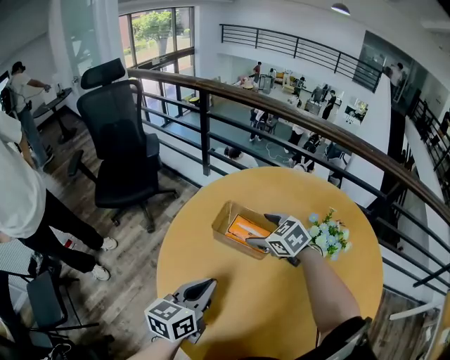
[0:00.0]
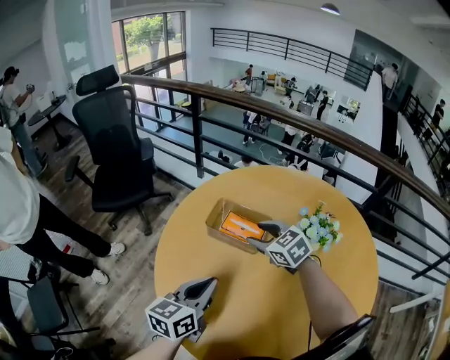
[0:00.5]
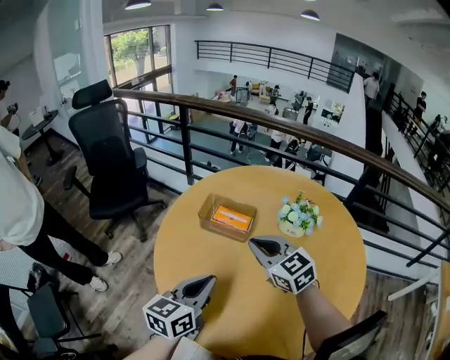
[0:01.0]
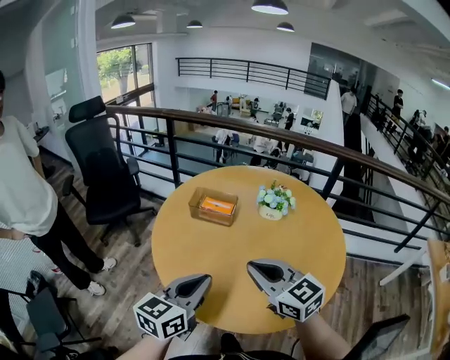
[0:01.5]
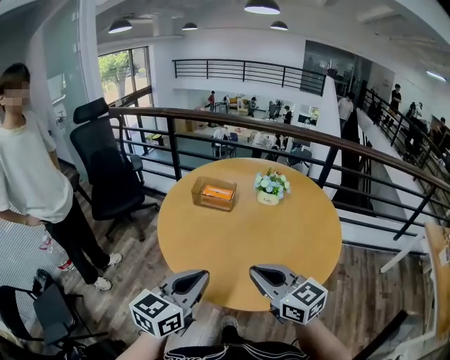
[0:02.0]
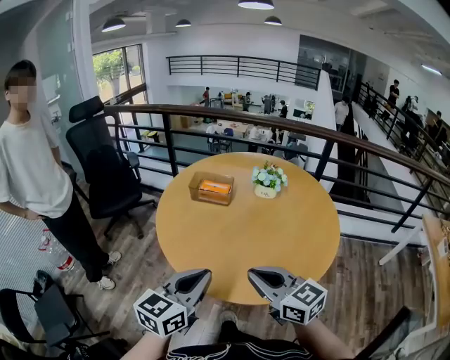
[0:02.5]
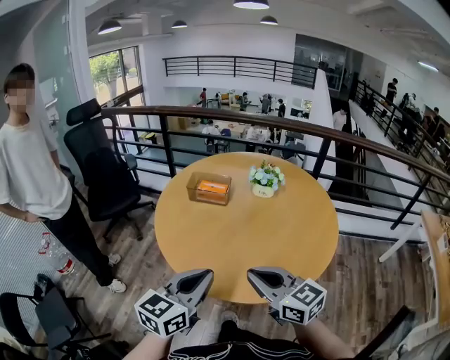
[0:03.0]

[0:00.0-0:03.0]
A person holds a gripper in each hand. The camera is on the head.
0:00.0 to 0:01.5: The right gripper is displaced backward and upward by some 35 cm, tips its fingers upward by about 30 degrees, and closes its fingers; the left gripper is displaced backward and upward by roughly 20 cm.
0:01.5 to 0:03.0: The grippers both shift backward by approximately 10 cm.

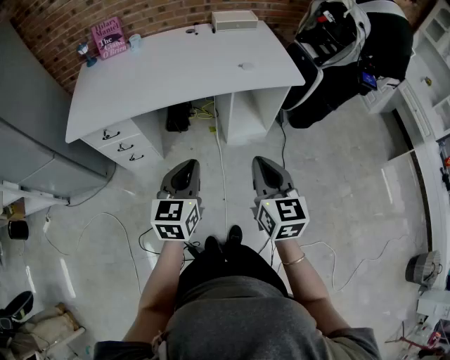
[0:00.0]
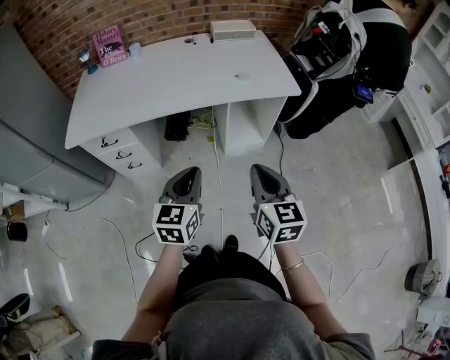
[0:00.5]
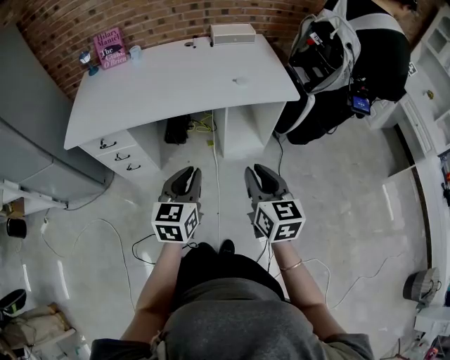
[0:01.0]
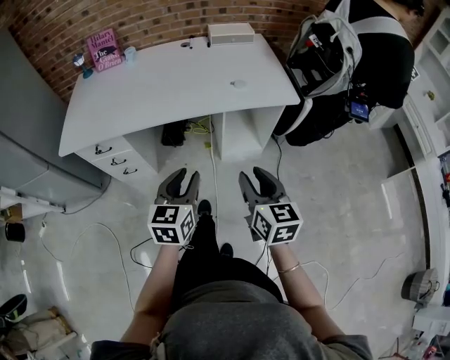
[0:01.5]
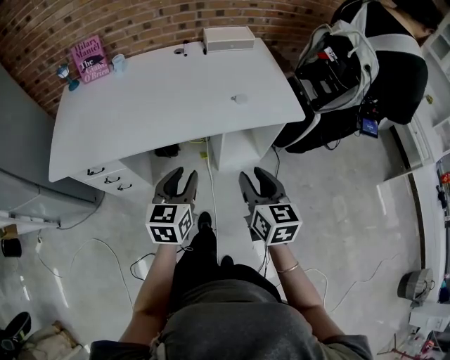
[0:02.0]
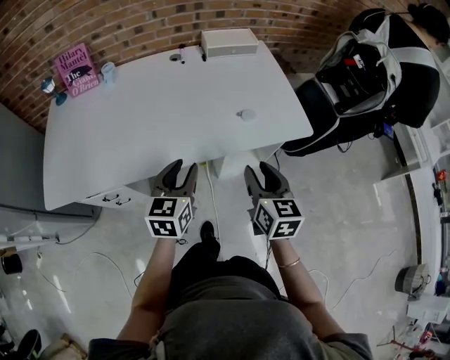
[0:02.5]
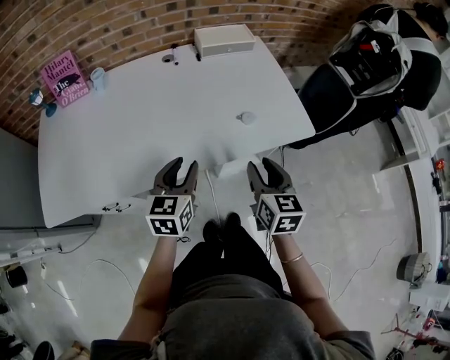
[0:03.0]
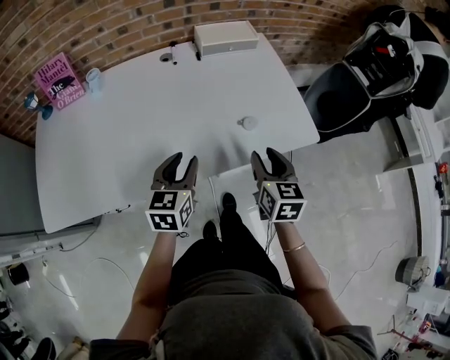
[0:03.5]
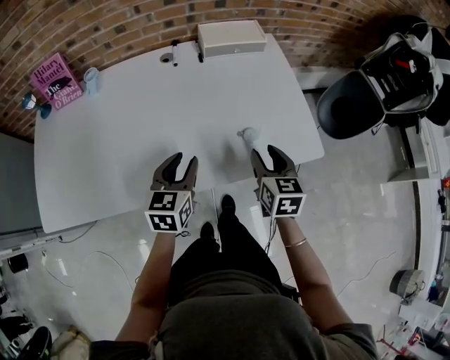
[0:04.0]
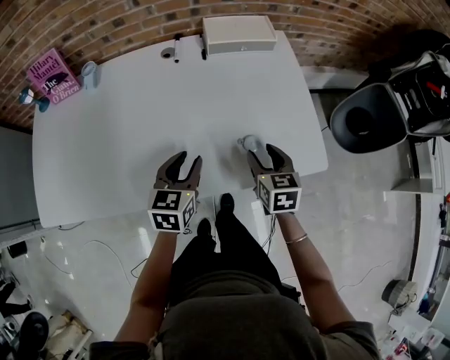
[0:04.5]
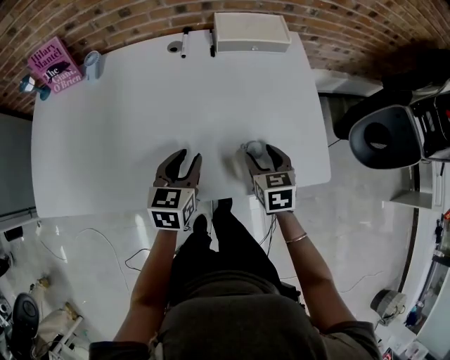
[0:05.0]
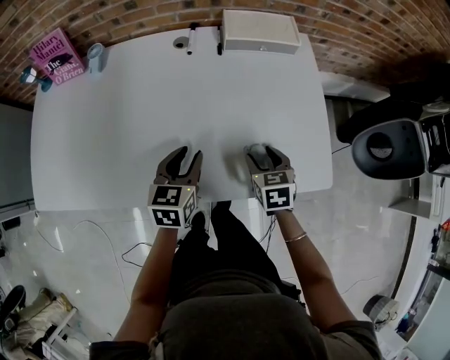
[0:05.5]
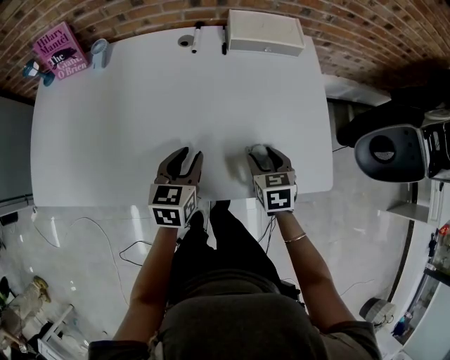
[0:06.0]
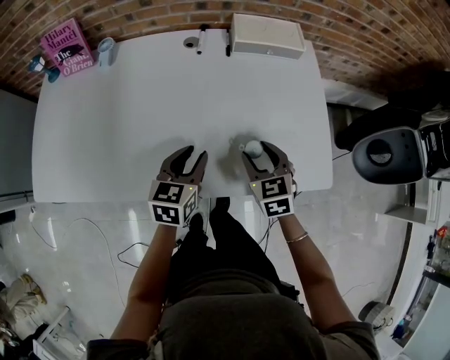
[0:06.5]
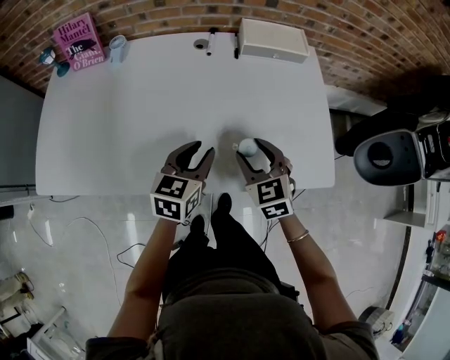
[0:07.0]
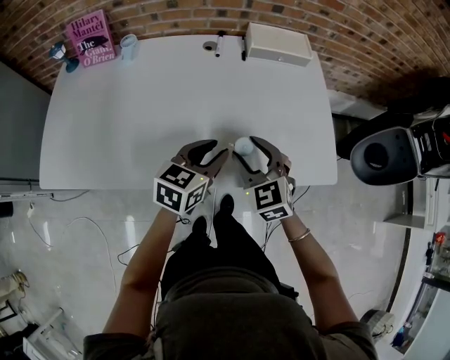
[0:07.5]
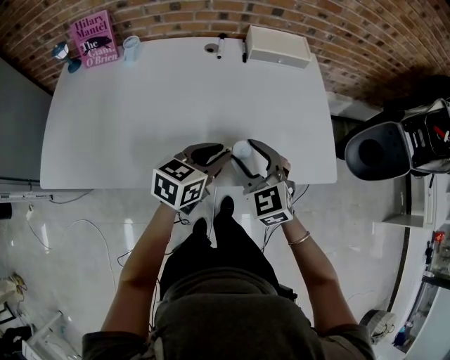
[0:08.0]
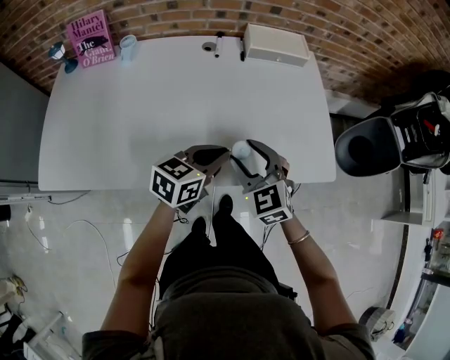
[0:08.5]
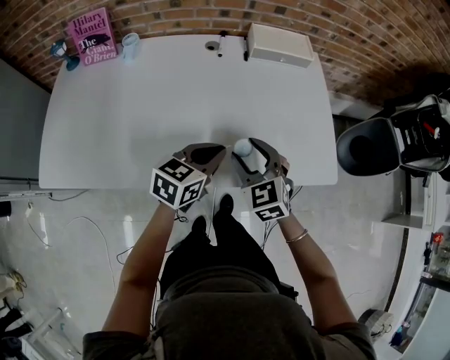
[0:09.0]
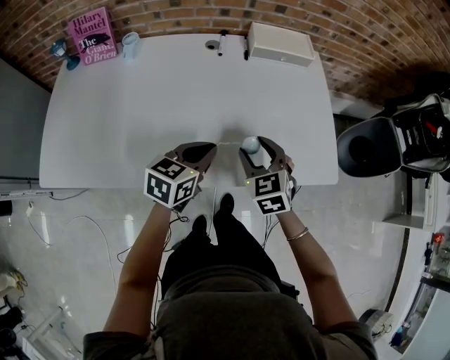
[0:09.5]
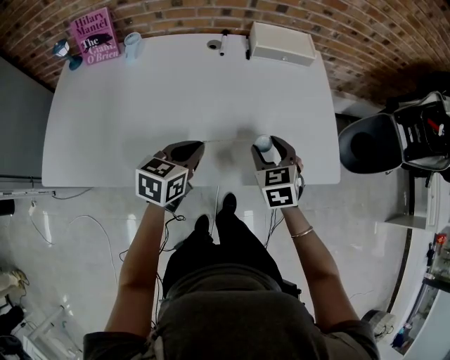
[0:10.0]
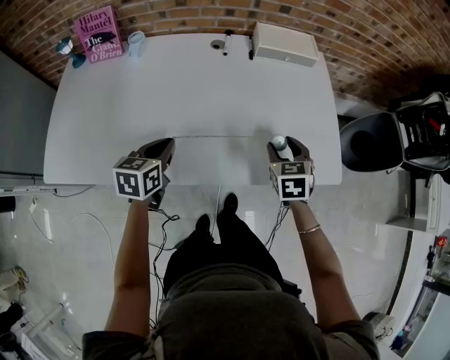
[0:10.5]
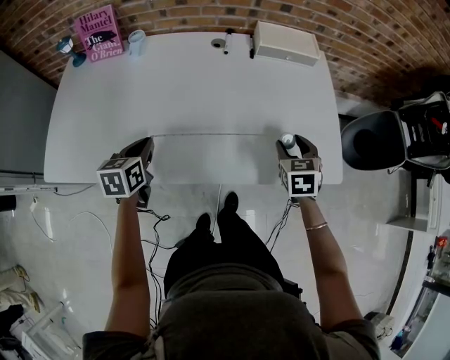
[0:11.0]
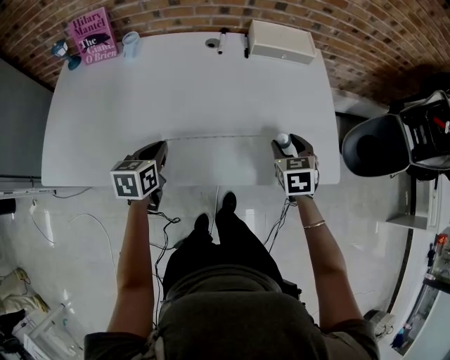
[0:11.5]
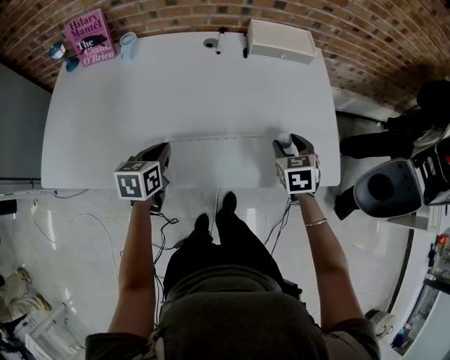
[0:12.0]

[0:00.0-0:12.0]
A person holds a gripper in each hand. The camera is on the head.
0:00.0 to 0:02.0: Both grippers move forward, roughly 15 cm. The right gripper opens; the left gripper opens up.
0:02.0 to 0:04.0: The two grippers go approximately 25 cm forward.
0:04.0 to 0:06.0: The left gripper goes roughly 5 cm forward. Meanwhile the right gripper is displaced downward and forward by about 10 cm, and swivels some 30 degrees.
0:06.0 to 0:08.0: The left gripper shifts about 10 cm upward and backward, and swivels approximately 30 degrees. The right gripper travels to the left, upward and backward by approximately 20 cm, and rotates roughly 40 degrees.
0:08.0 to 0:10.0: The right gripper goes roughly 10 cm to the right and forward, and turns by approximately 20 degrees. Meanwhile the left gripper travels to the left by roughly 5 cm.
0:10.0 to 0:12.0: The right gripper moves to the right, approximately 10 cm. The left gripper moves to the left, about 10 cm, and changes its angle by some 20 degrees.

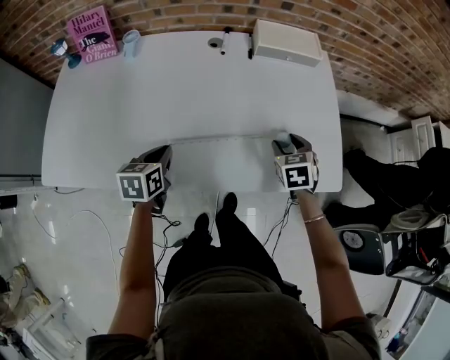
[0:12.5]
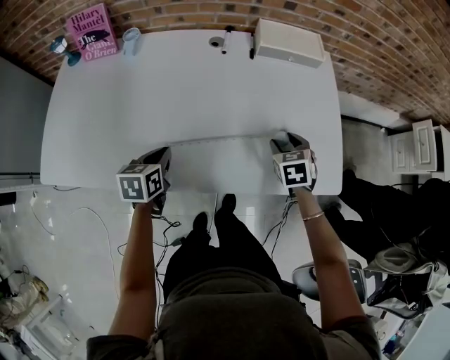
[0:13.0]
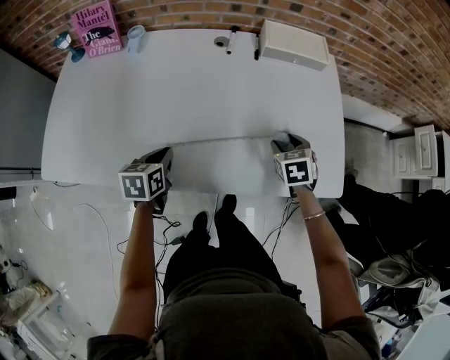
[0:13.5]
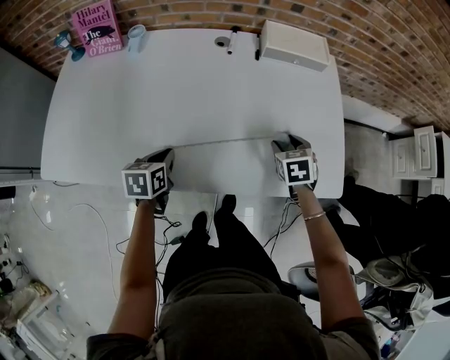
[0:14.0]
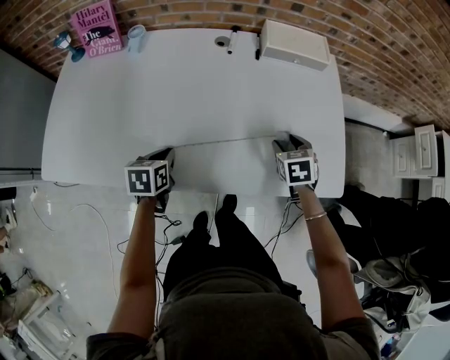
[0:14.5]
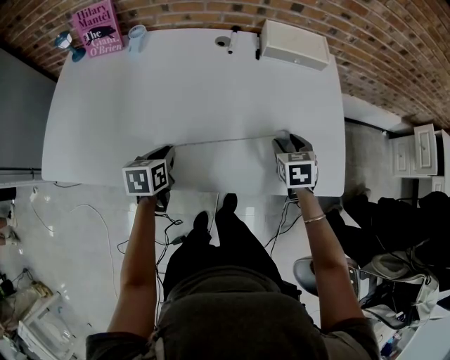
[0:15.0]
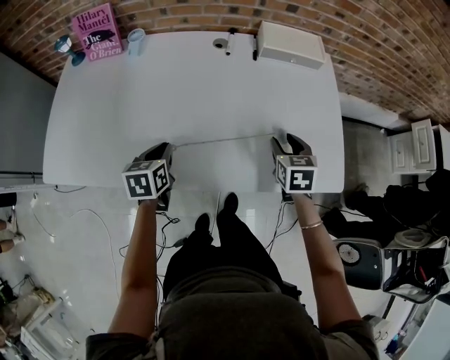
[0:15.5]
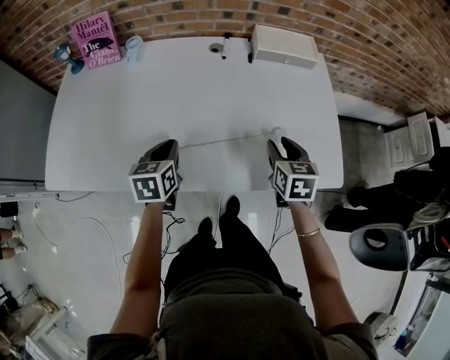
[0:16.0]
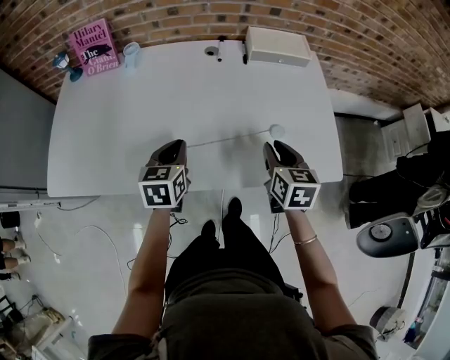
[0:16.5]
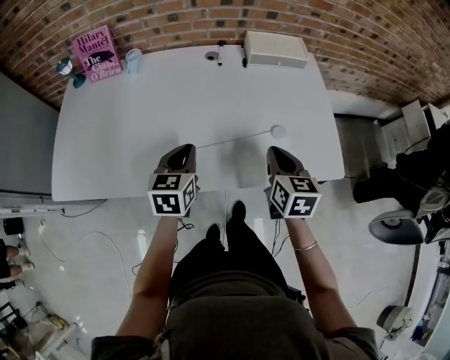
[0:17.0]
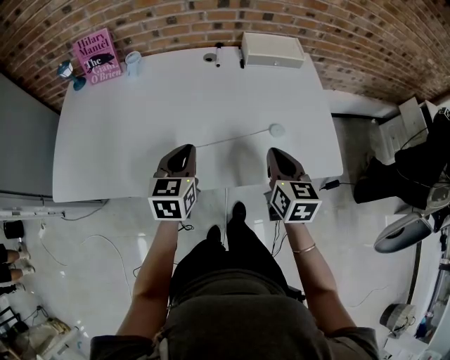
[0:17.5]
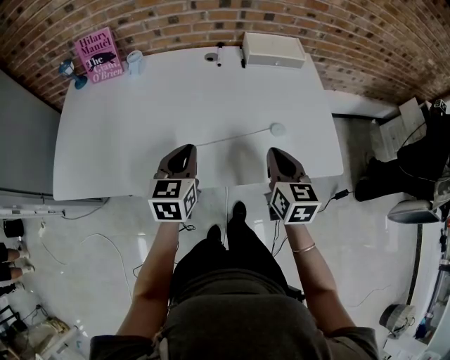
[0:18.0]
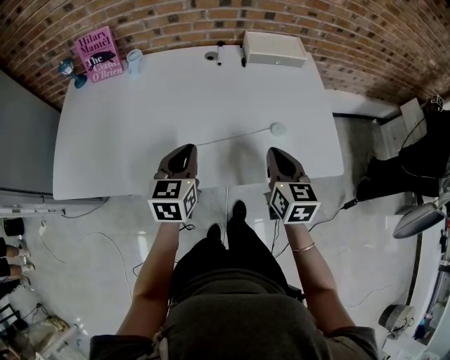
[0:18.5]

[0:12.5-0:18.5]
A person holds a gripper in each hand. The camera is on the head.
0:12.5 to 0:14.5: The grippers stay close to where they were, moving slightly.
0:14.5 to 0:16.5: The right gripper moves upward, backward and to the left, roughly 15 cm, swivels some 30 degrees, and closes its fingers. Meanwhile the left gripper heads upward, covering approximately 10 cm, and rotates about 20 degrees.
0:16.5 to 0:18.5: The right gripper shifts by approximately 5 cm, and closes its fingers; the left gripper ends up approximately 5 cm from where it was.

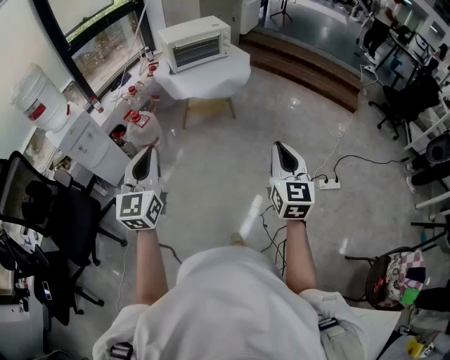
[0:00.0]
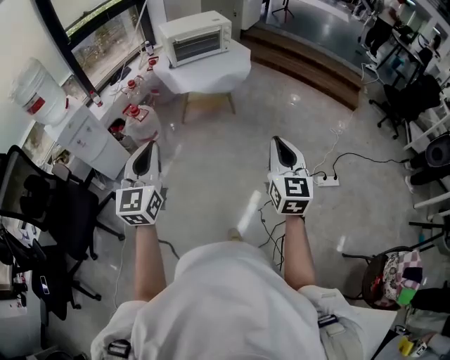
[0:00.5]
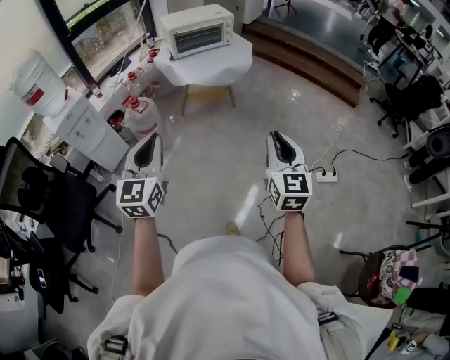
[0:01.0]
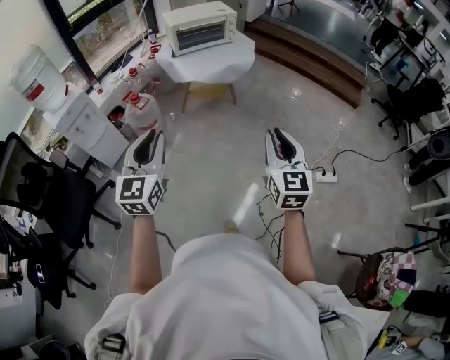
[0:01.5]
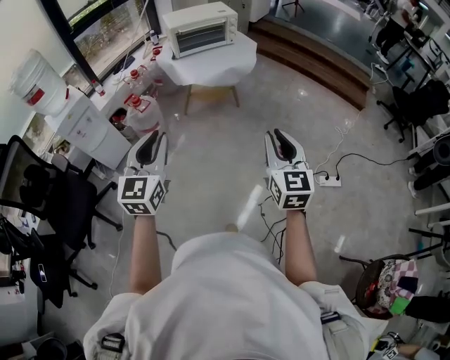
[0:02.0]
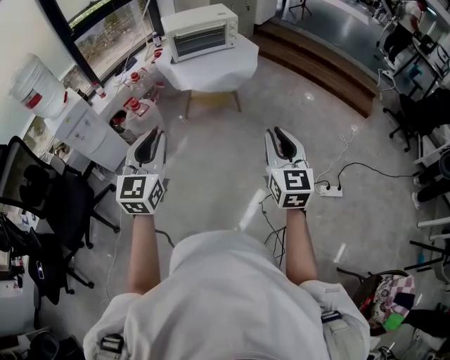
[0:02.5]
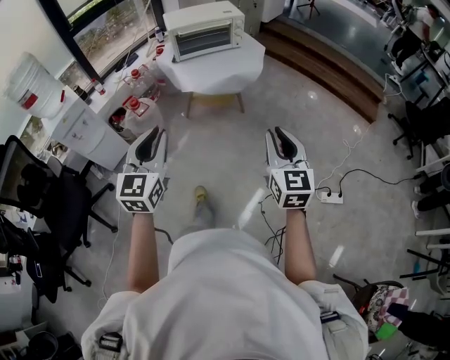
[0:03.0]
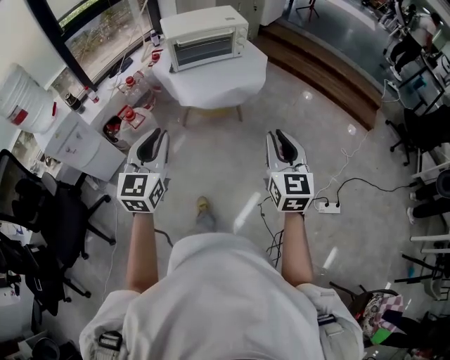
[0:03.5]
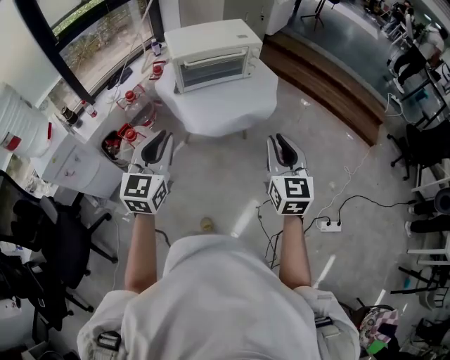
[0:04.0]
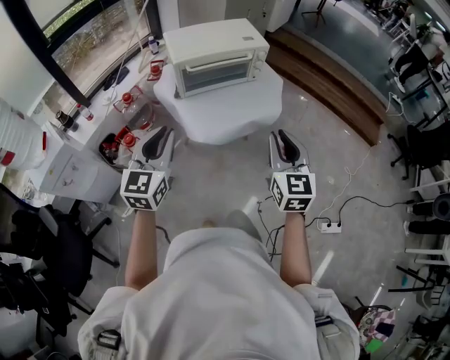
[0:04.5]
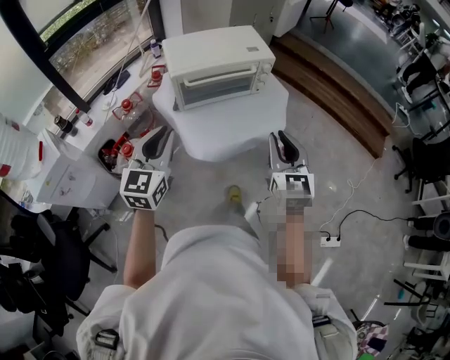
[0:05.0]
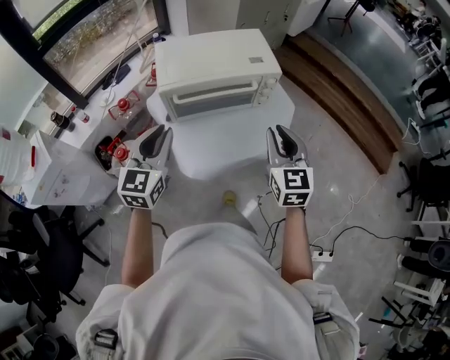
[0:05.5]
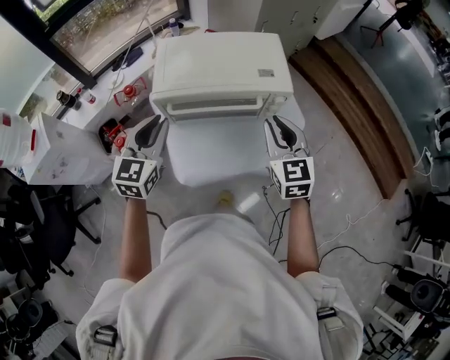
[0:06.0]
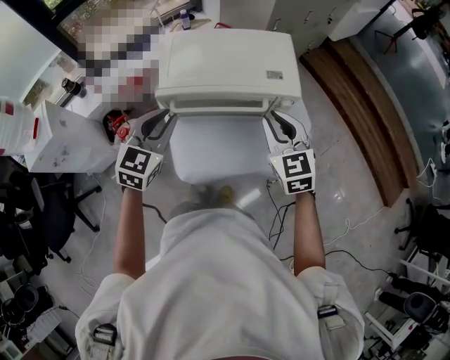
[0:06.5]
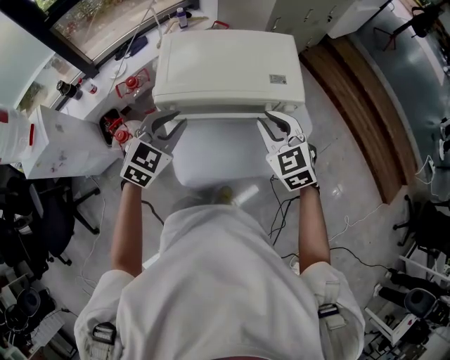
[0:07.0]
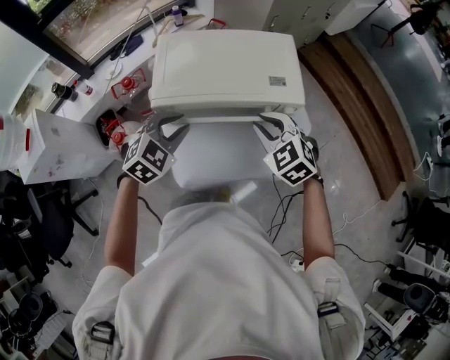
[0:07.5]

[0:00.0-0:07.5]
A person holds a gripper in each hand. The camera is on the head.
0:00.0 to 0:02.0: The left gripper ends up approximately 5 cm from where it was.
0:02.0 to 0:04.0: The pair of grippers is taken forward, some 40 cm.
0:04.0 to 0:05.5: Both grippers travel together forward, approximately 35 cm.
0:05.5 to 0:07.5: The right gripper moves forward and downward, approximately 20 cm, and swivels approximately 50 degrees. The left gripper is displaced forward, downward and to the right by about 20 cm, and points its fingers some 30 degrees further downward.
